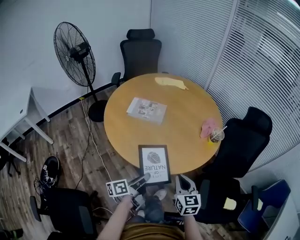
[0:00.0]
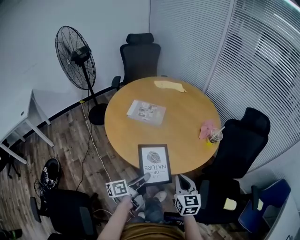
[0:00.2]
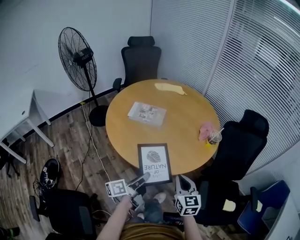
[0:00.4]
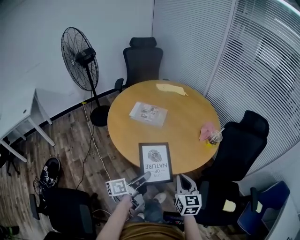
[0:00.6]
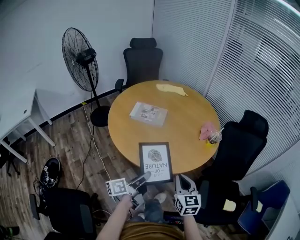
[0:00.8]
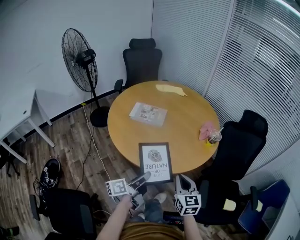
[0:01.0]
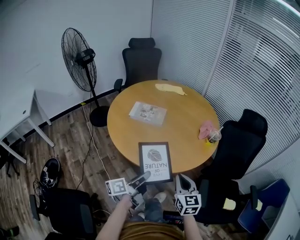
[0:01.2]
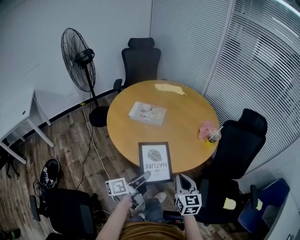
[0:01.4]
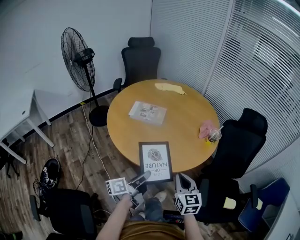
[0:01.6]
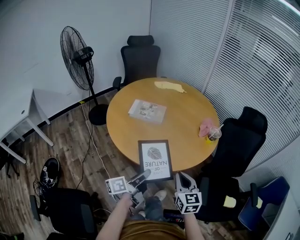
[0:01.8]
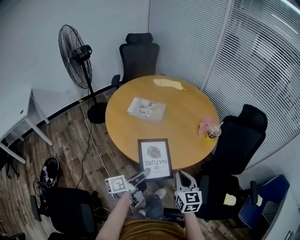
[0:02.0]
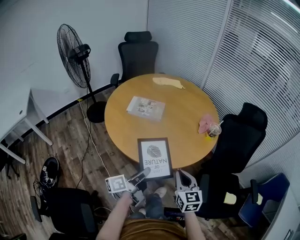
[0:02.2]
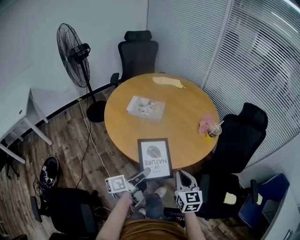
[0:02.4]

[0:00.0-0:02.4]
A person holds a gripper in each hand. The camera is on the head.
0:00.0 to 0:01.2: The left gripper moves some 5 cm.
0:01.2 to 0:02.4: There are only small adjustments of the grippers.

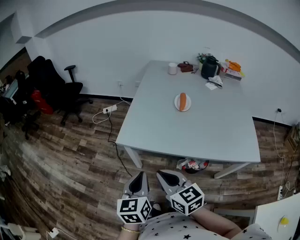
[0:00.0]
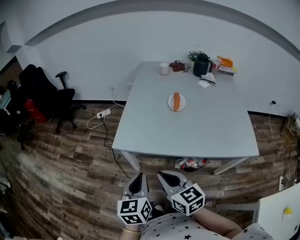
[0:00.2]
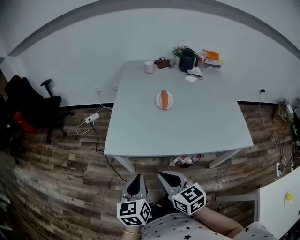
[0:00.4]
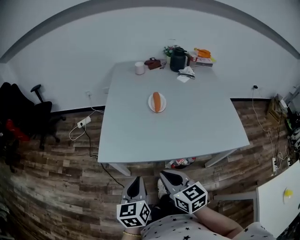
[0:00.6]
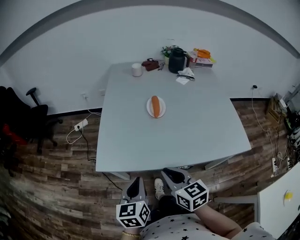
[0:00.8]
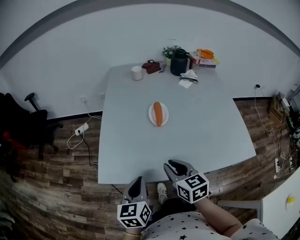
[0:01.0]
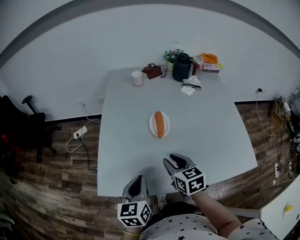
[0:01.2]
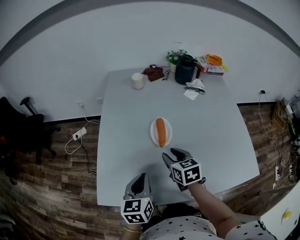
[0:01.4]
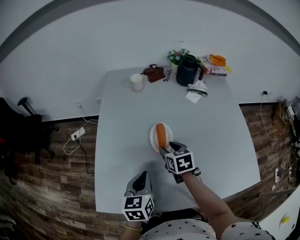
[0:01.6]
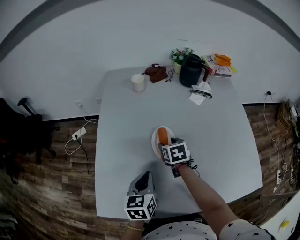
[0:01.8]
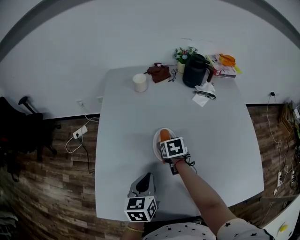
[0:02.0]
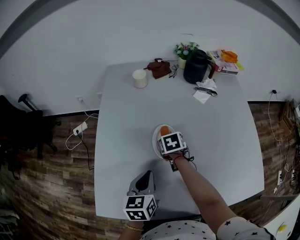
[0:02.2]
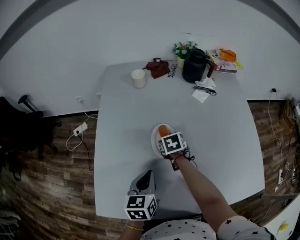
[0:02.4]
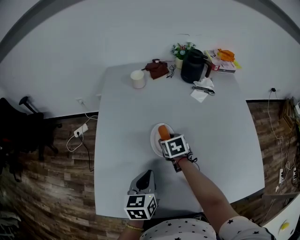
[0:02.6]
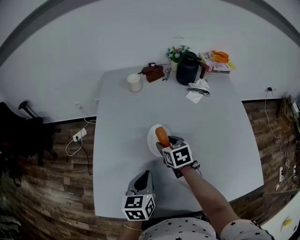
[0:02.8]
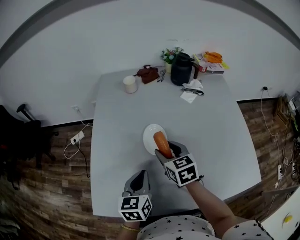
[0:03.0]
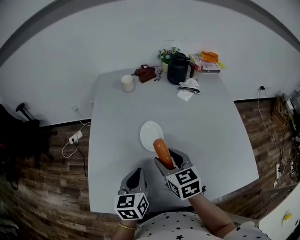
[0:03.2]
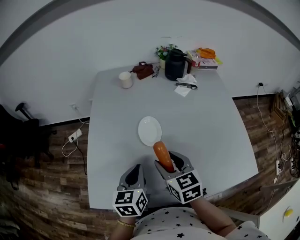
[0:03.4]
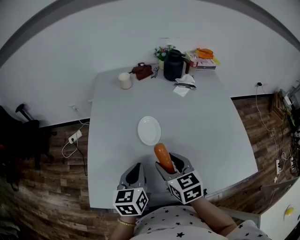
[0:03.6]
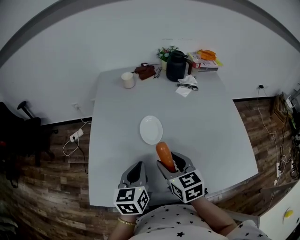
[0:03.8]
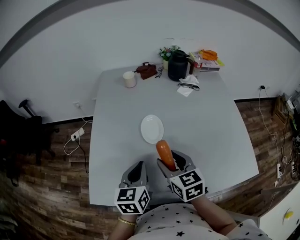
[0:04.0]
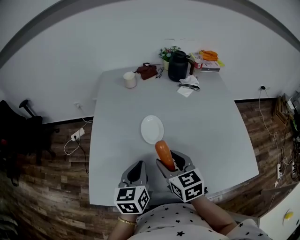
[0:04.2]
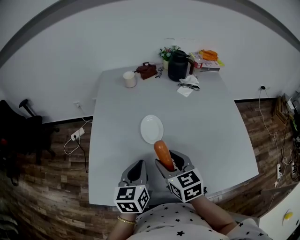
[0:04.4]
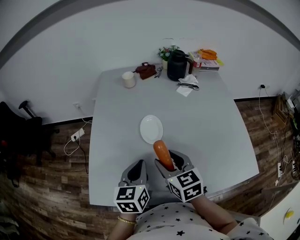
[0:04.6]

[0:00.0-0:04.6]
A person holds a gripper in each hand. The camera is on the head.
0:00.0 to 0:01.6: The right gripper heads forward and to the right, covering roughly 50 cm, turns by about 40 degrees, and opens its fingers; the left gripper heads forward, covering about 35 cm.
0:01.6 to 0:03.0: The right gripper is displaced upward by approximately 5 cm.
0:03.0 to 0:04.6: The right gripper shifts roughly 10 cm backward.

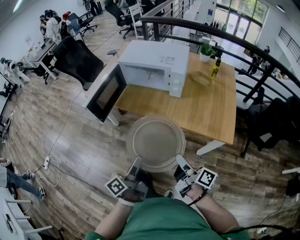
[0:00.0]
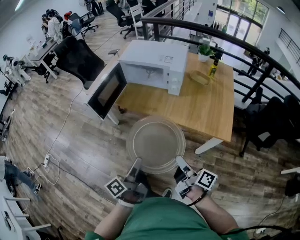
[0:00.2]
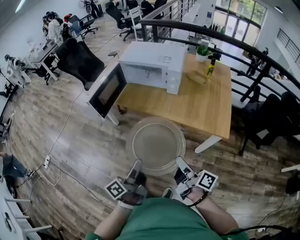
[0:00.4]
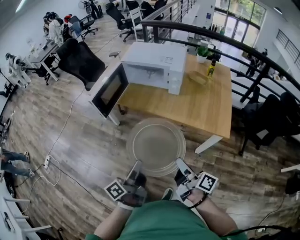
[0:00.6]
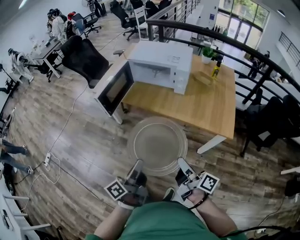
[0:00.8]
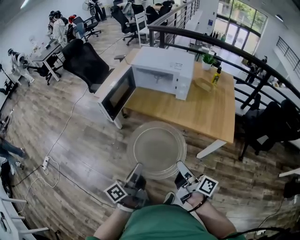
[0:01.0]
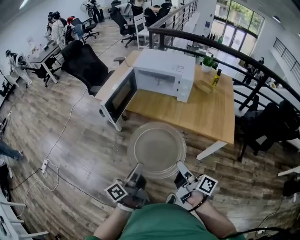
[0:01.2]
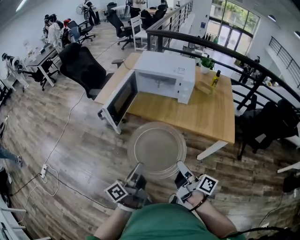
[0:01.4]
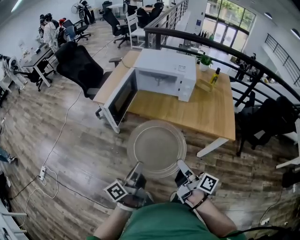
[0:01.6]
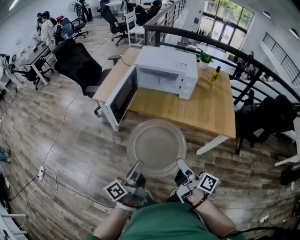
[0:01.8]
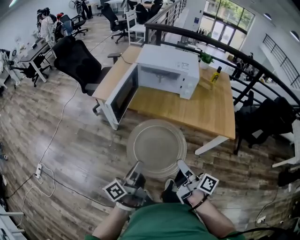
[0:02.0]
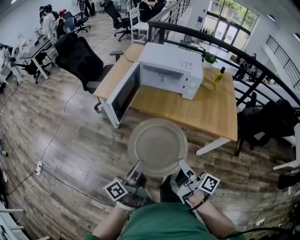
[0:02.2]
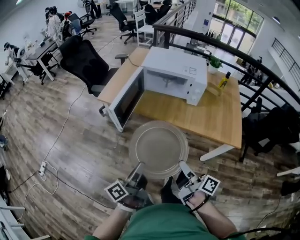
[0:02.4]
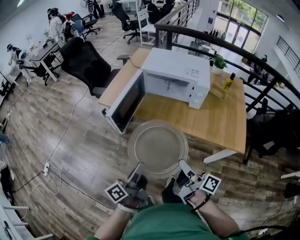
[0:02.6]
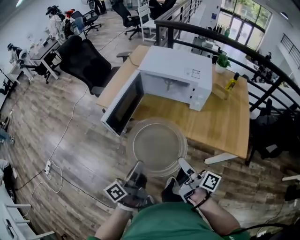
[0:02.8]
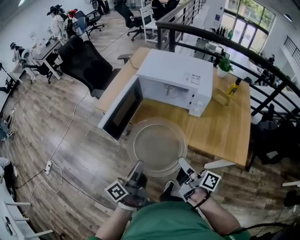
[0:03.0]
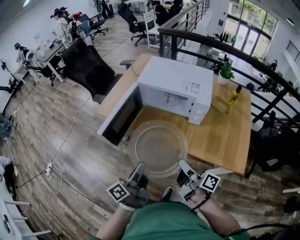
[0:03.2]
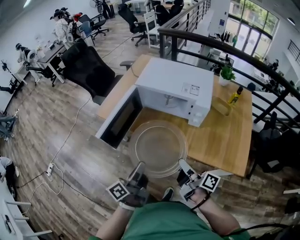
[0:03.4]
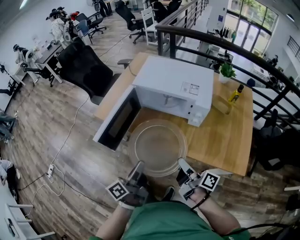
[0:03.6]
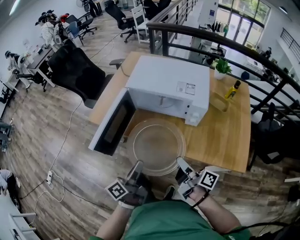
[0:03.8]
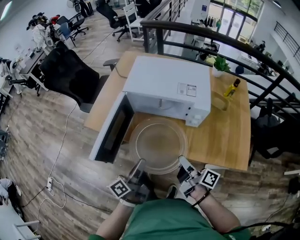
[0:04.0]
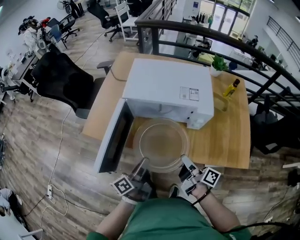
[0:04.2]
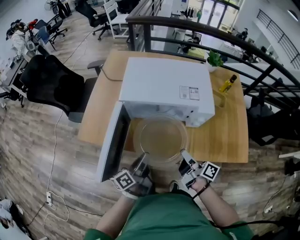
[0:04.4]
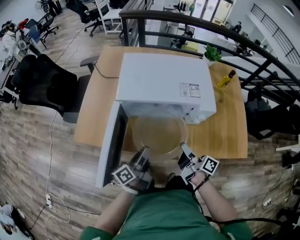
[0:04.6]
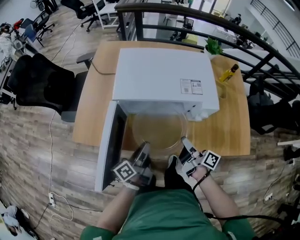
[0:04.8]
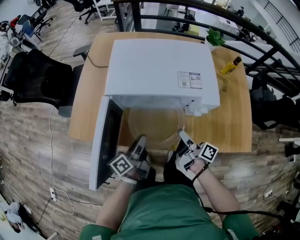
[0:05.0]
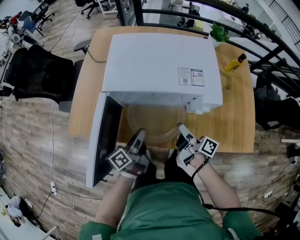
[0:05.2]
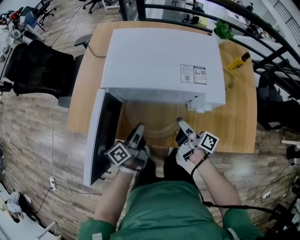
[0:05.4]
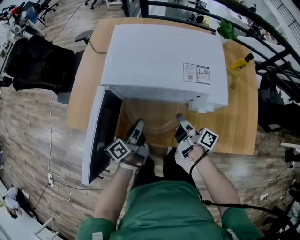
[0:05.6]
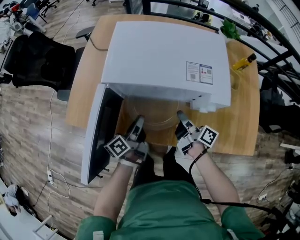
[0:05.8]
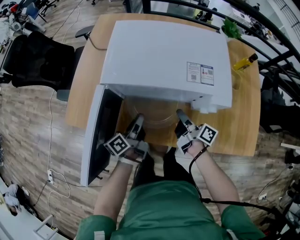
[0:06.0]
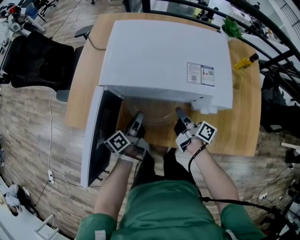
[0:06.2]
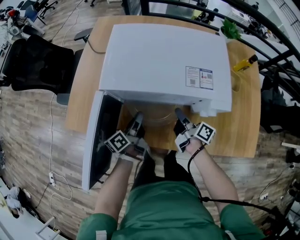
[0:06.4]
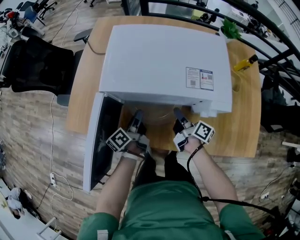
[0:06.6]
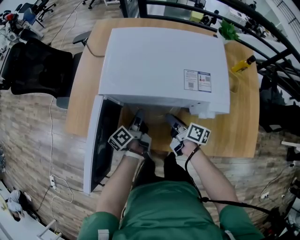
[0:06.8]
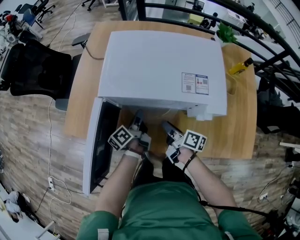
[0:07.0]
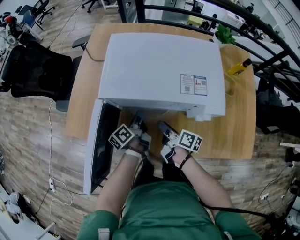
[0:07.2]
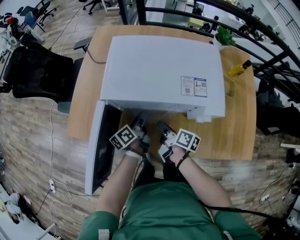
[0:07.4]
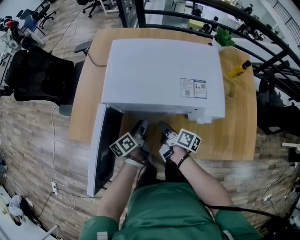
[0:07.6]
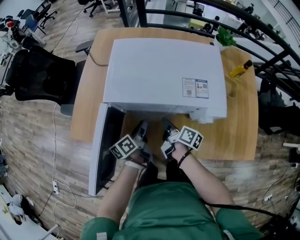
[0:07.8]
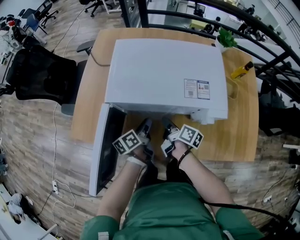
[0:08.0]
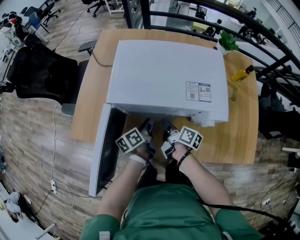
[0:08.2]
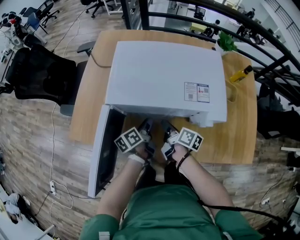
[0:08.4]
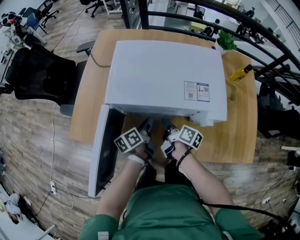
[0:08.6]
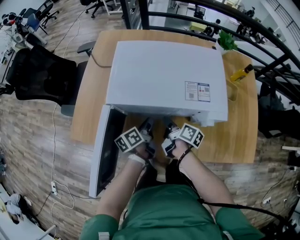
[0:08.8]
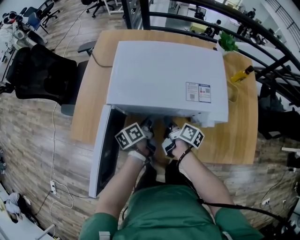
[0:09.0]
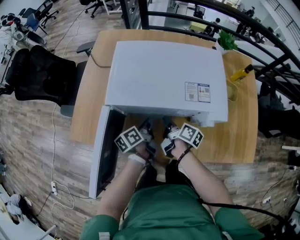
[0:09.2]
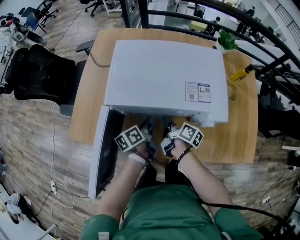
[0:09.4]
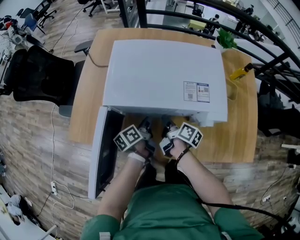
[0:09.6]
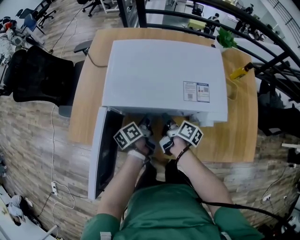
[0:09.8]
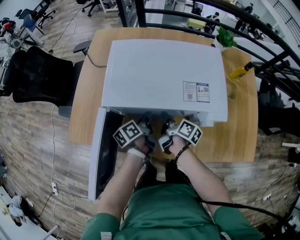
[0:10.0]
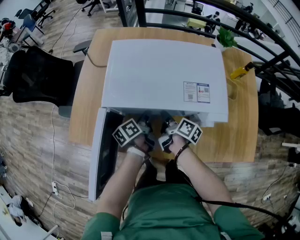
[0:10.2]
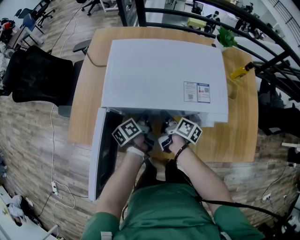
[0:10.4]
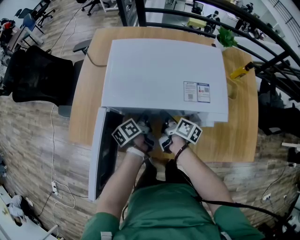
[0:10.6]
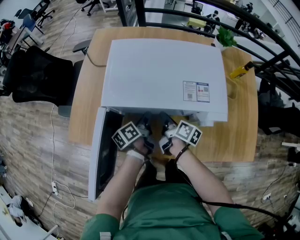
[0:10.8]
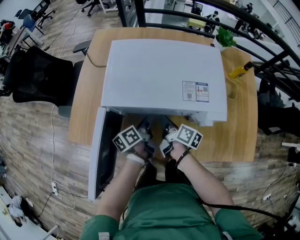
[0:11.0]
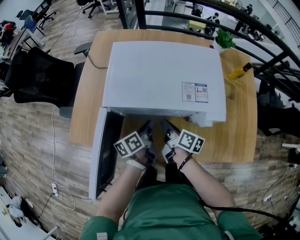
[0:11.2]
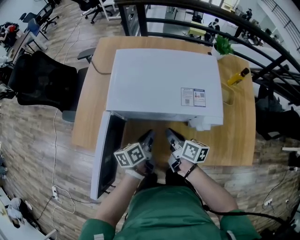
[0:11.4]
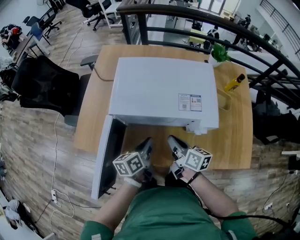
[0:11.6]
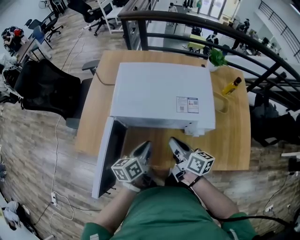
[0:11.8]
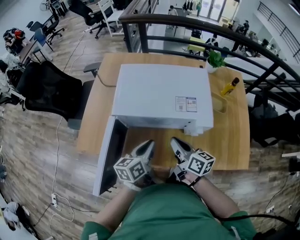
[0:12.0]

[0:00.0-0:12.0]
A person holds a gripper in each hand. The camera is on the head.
0:00.0 to 0:01.6: The grippers both shift to the left by about 15 cm.
0:01.6 to 0:03.0: The two grippers go approximately 20 cm forward.
0:03.0 to 0:04.4: The grippers both shift forward by some 25 cm. The left gripper swivels some 20 degrees.
0:04.4 to 0:06.0: The grippers both shift forward and downward by roughly 20 cm.
0:06.0 to 0:07.6: The left gripper opens up, while the right gripper is displaced to the left by about 5 cm, and opens, then closes once more.
0:07.6 to 0:09.0: The left gripper closes.
0:09.0 to 0:10.4: The grippers make only small movements.
0:10.4 to 0:12.0: The grippers both shift upward and backward by roughly 20 cm. The right gripper changes its angle by roughly 30 degrees. Meanwhile the left gripper swivels about 30 degrees.

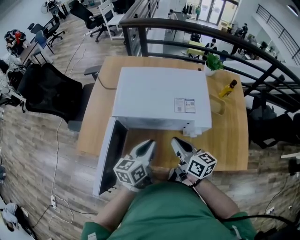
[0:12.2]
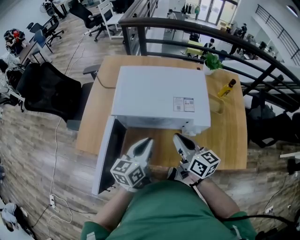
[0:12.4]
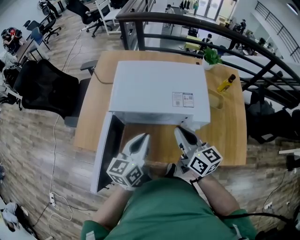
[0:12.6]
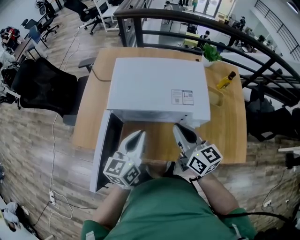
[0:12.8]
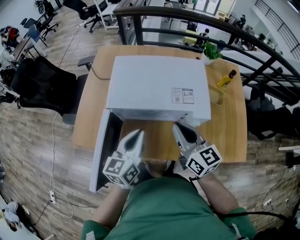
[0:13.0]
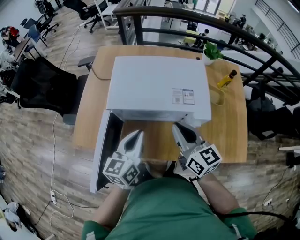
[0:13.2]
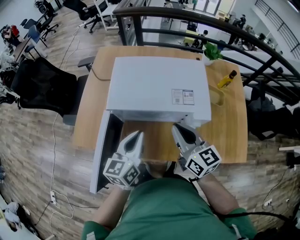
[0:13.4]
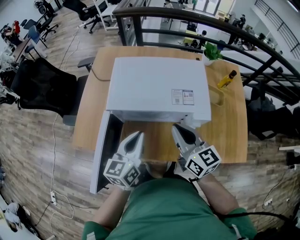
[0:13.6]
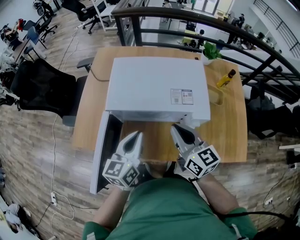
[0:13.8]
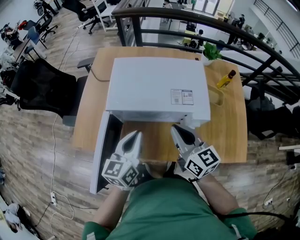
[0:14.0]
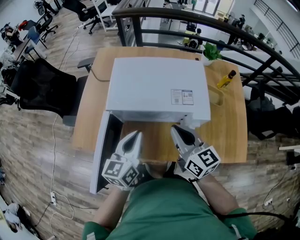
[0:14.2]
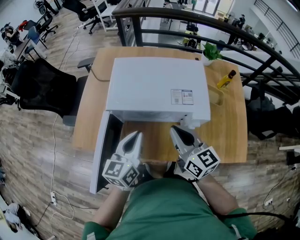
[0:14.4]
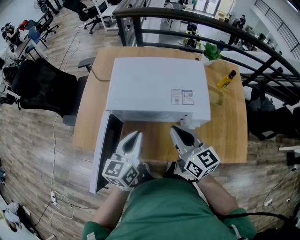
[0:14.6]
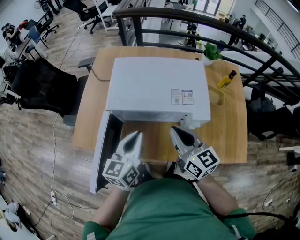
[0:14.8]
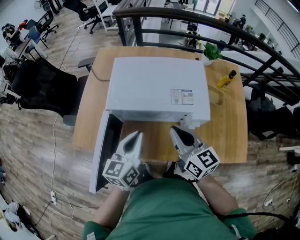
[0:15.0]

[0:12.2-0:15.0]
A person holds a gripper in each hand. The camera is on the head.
0:12.2 to 0:13.6: The right gripper shifts some 5 cm upward, and rotates roughly 20 degrees.
0:13.6 to 0:15.0: Both grippers stay put.

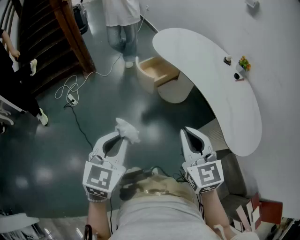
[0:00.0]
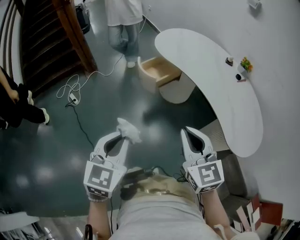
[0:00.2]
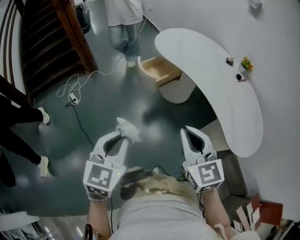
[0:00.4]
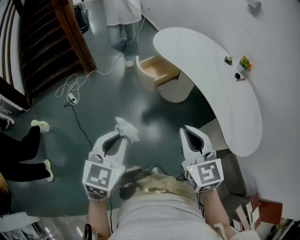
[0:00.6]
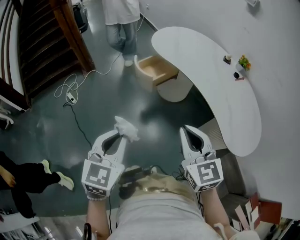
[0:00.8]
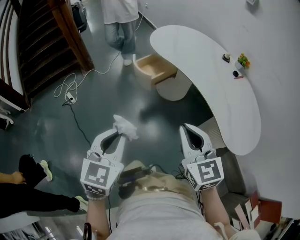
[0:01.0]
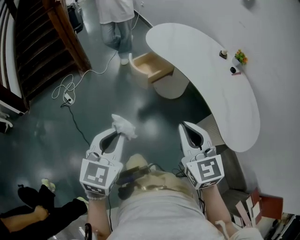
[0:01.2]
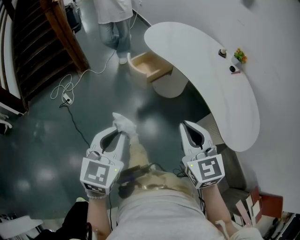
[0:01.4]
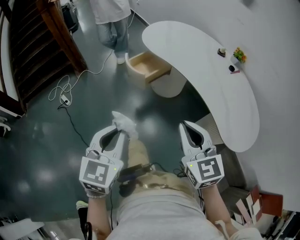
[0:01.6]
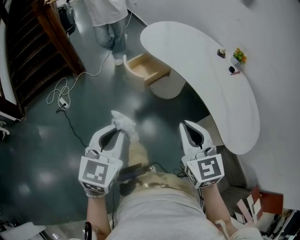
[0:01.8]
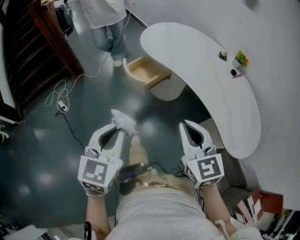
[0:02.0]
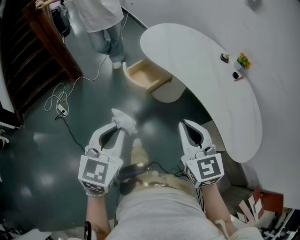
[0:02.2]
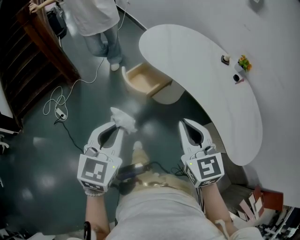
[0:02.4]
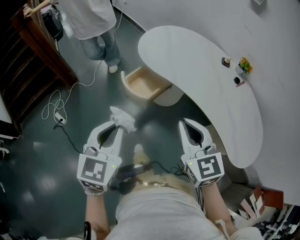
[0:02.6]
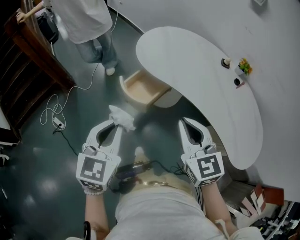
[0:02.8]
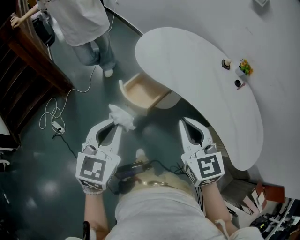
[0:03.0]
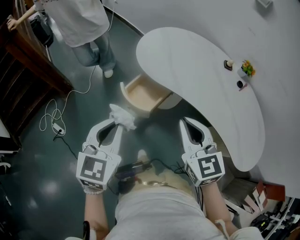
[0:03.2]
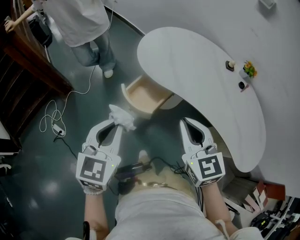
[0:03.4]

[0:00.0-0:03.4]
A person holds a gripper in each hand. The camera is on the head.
0:00.0 to 0:01.6: There are only small adjustments of the grippers.
0:01.6 to 0:03.4: Both grippers move forward, about 30 cm.
